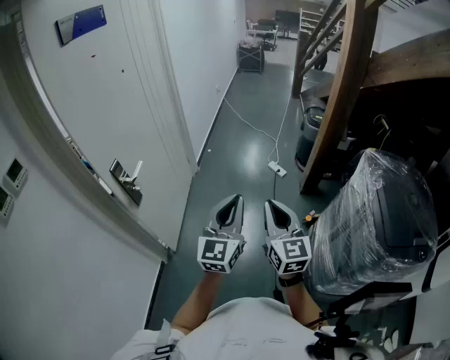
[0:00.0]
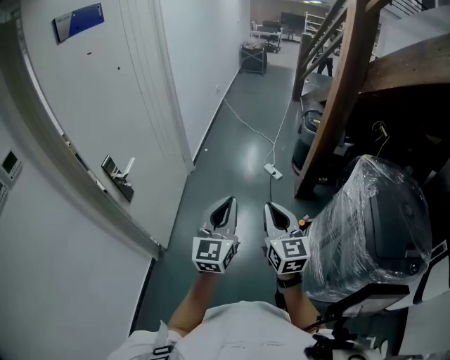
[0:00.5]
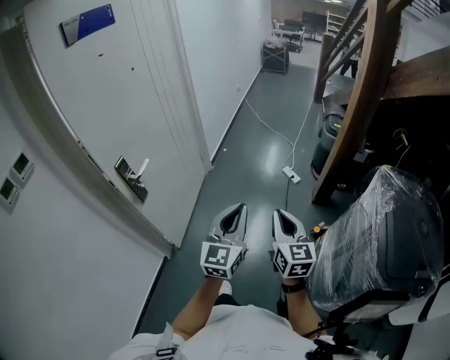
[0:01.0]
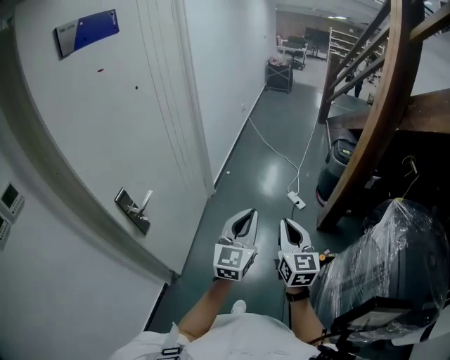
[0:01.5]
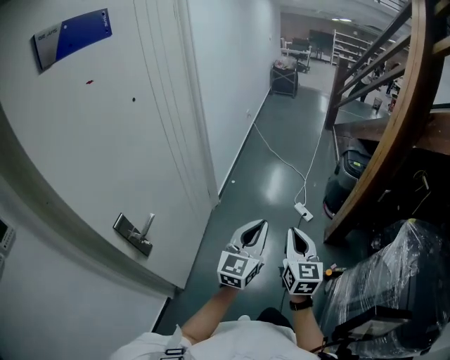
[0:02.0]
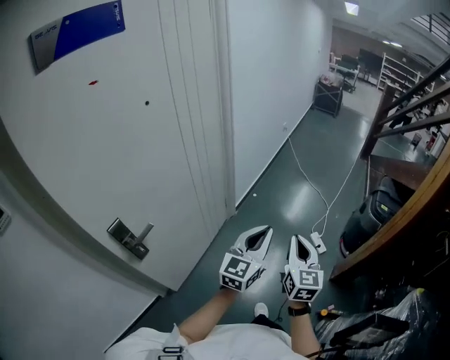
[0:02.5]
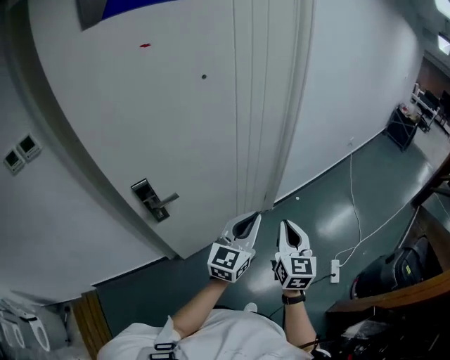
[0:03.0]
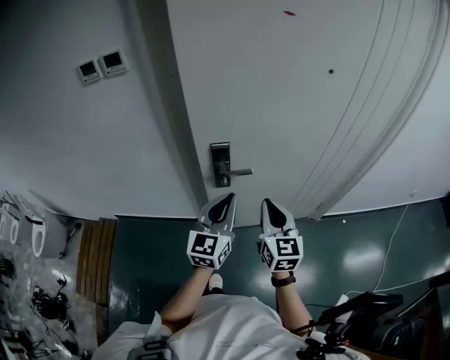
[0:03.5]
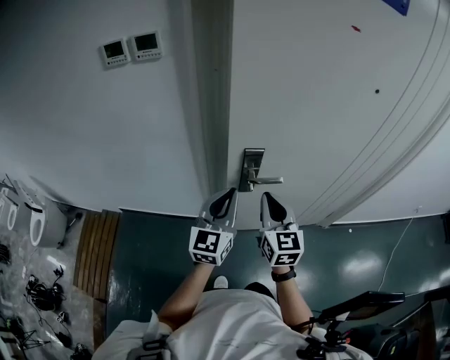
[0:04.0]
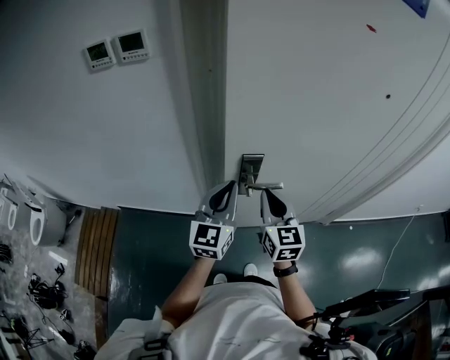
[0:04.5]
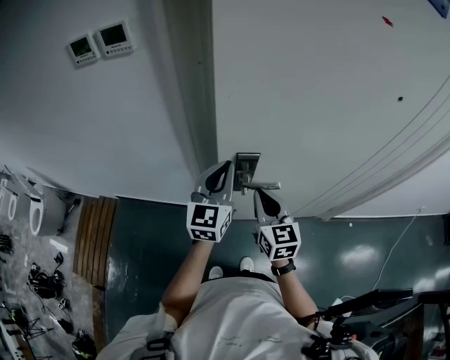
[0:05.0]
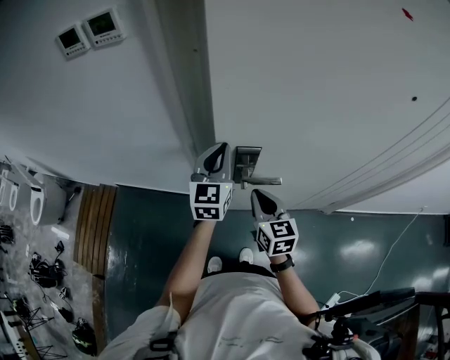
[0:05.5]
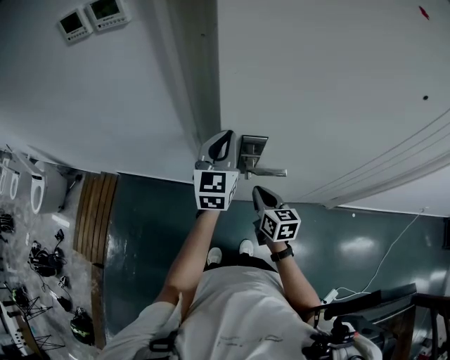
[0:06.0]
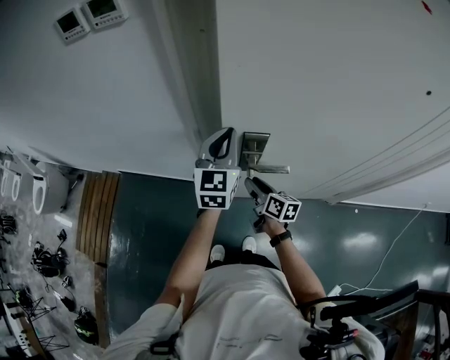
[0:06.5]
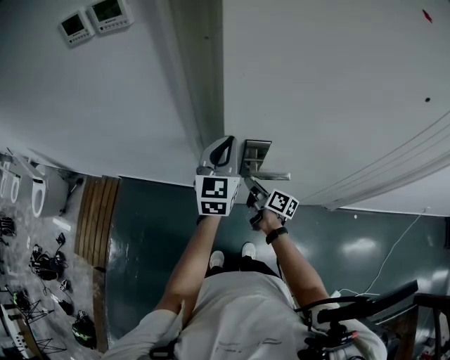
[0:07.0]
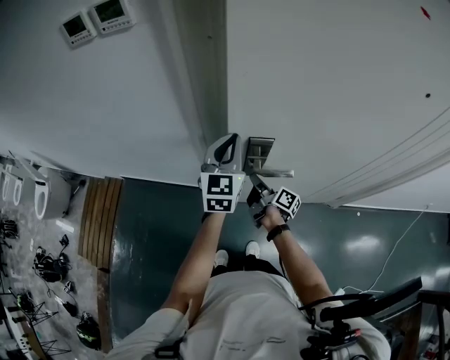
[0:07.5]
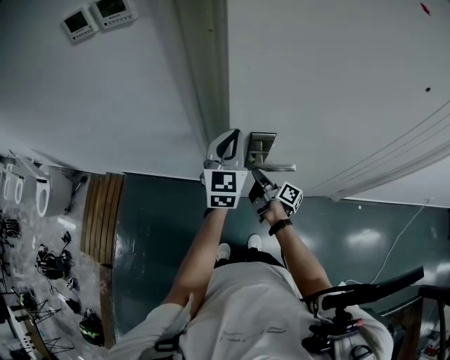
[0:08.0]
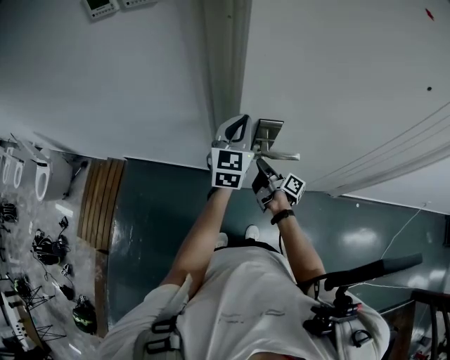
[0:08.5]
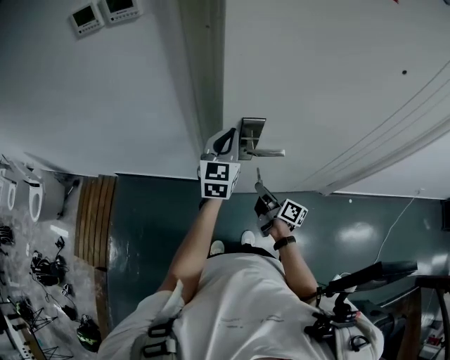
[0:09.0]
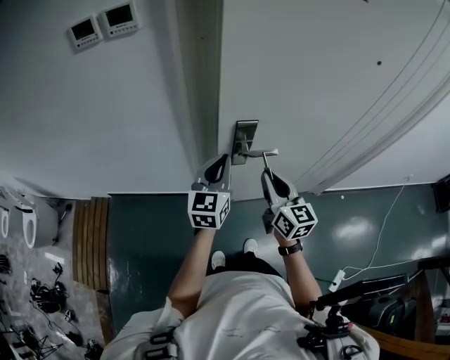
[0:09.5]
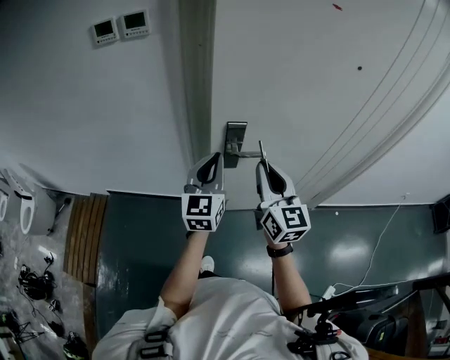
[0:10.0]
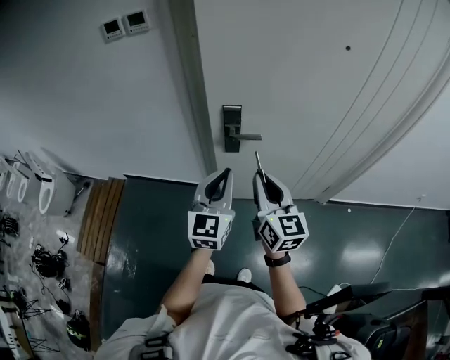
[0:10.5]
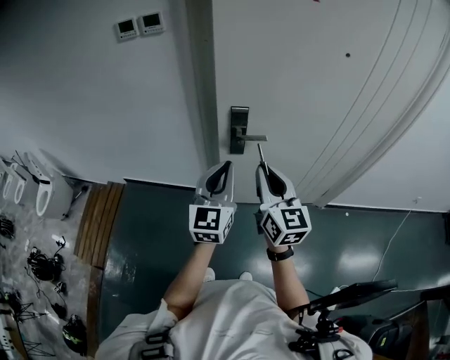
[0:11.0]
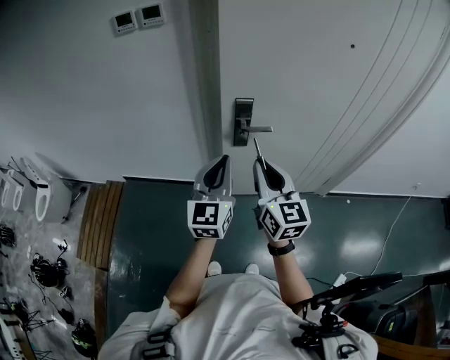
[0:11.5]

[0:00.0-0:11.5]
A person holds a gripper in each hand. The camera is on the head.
0:00.0 to 0:02.0: The grippers both shift forward by approximately 25 cm.
0:02.0 to 0:04.0: Both grippers are carried some 40 cm. The right gripper turns by about 80 degrees. The left gripper rotates some 80 degrees.
0:04.0 to 0:06.0: The left gripper is displaced forward by some 20 cm. The right gripper shifts approximately 20 cm downward and forward, and changes its angle by some 30 degrees.
0:06.0 to 0:07.5: The right gripper goes some 10 cm forward and downward, rotates around the line of its fingers by about 50 degrees, clockwise from behind, and opens, then closes once more.
0:07.5 to 0:09.5: The left gripper travels backward by some 10 cm. The right gripper moves upward and backward, some 25 cm, and rotates around the line of its fingers by approximately 70 degrees, counterclockwise from behind.
0:09.5 to 0:11.5: The grippers both shift backward and upward by about 20 cm.

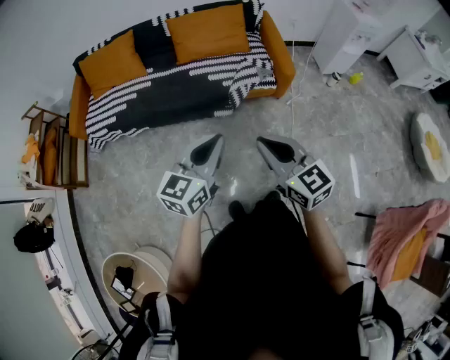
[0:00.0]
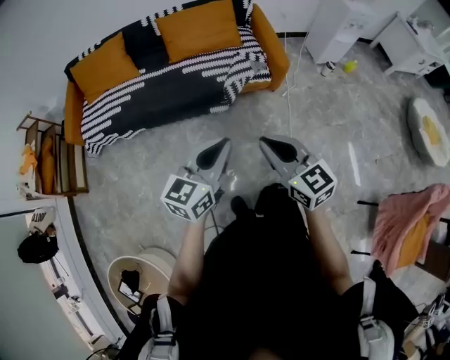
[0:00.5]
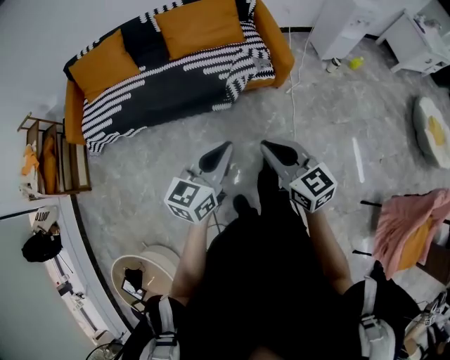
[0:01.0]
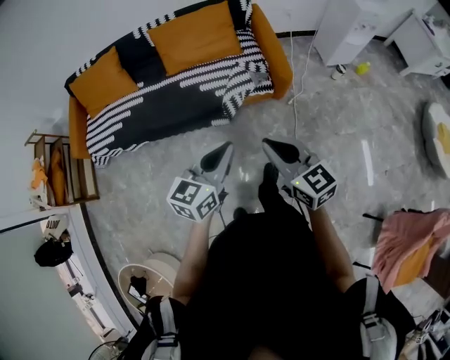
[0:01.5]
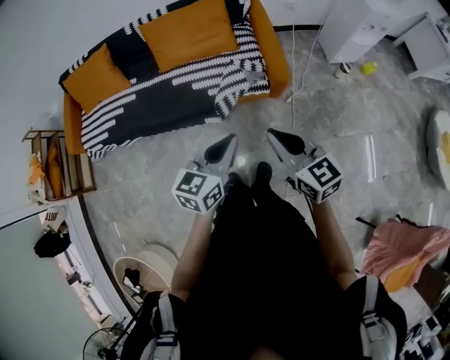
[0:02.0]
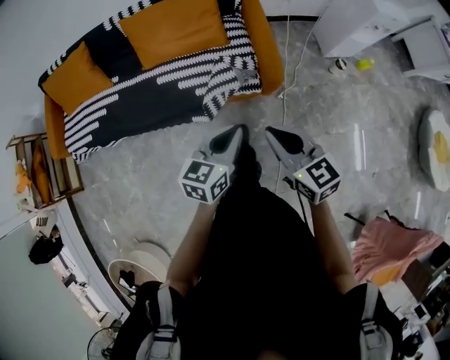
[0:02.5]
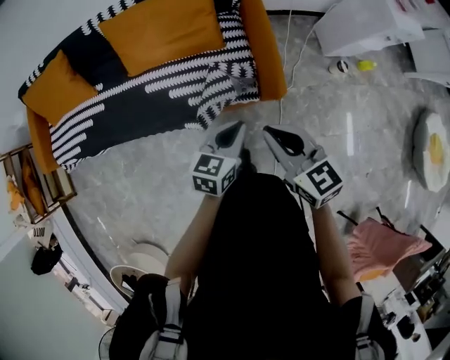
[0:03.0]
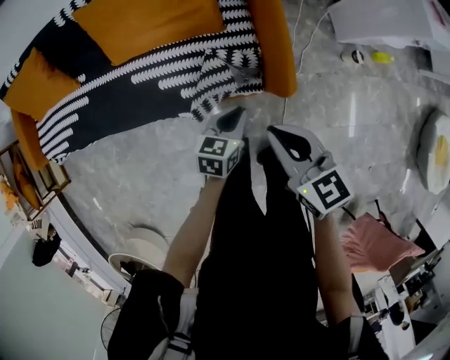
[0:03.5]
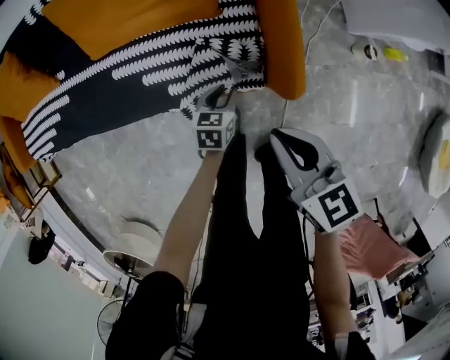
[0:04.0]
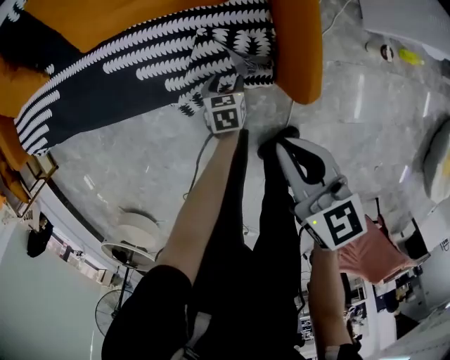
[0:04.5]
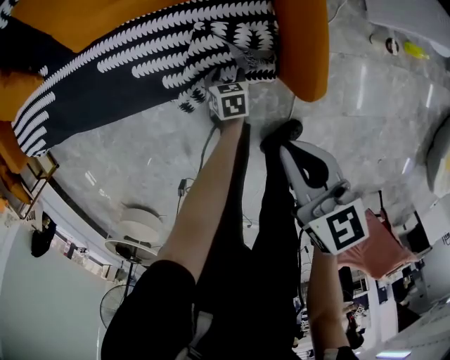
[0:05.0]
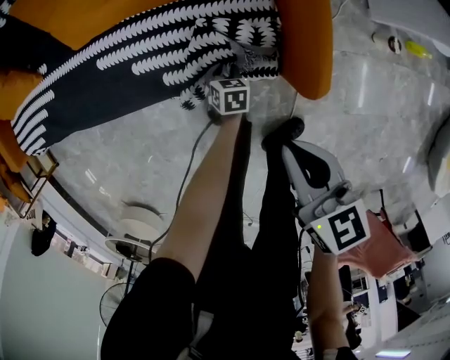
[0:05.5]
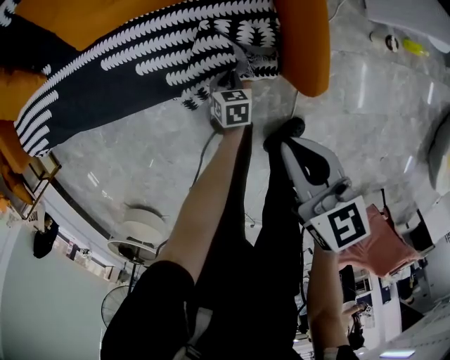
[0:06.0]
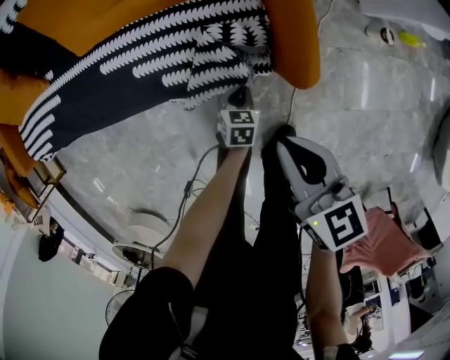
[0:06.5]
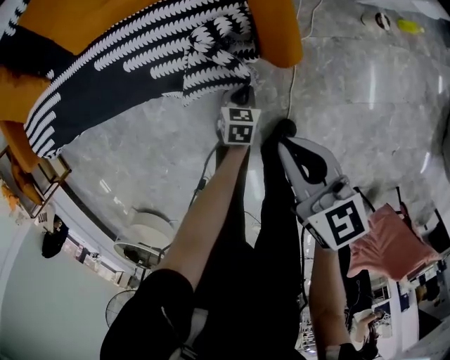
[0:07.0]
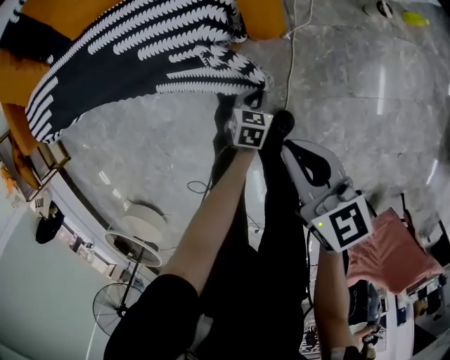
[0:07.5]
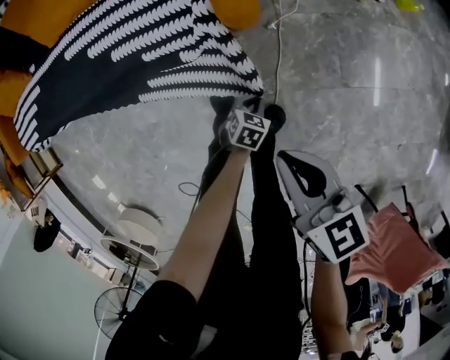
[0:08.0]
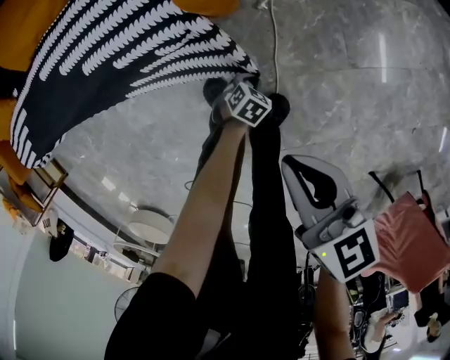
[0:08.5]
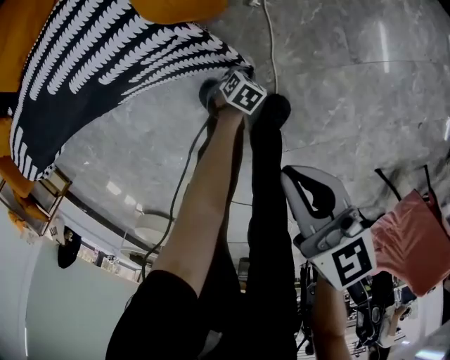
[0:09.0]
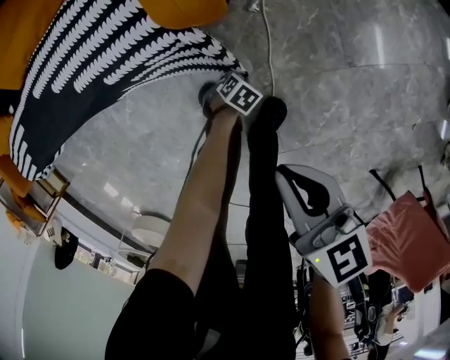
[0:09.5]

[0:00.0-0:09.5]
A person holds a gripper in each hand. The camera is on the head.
0:00.0 to 0:02.0: The grippers both shift forward and to the right by some 25 cm.
0:02.0 to 0:04.0: The left gripper is displaced downward and forward by about 50 cm, changes its angle by some 30 degrees, and opens its fingers. Meanwhile the right gripper travels forward and downward by about 35 cm, and rotates about 20 degrees.
0:04.0 to 0:05.5: The left gripper heads downward, covering roughly 15 cm, swivels some 20 degrees, and opens, then closes once more; the right gripper heads downward, covering roughly 5 cm.
0:05.5 to 0:07.5: The left gripper moves backward and to the right, approximately 20 cm, and closes, while the right gripper shifts roughly 15 cm backward.
0:07.5 to 0:09.5: The left gripper is displaced downward by some 20 cm, and swivels about 40 degrees. The right gripper goes some 10 cm downward.

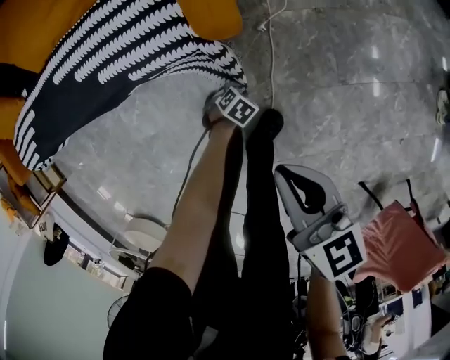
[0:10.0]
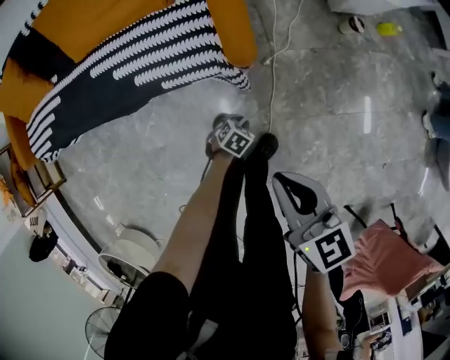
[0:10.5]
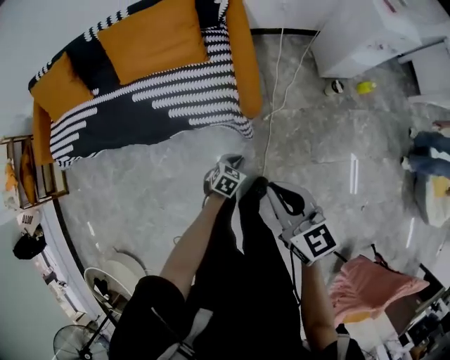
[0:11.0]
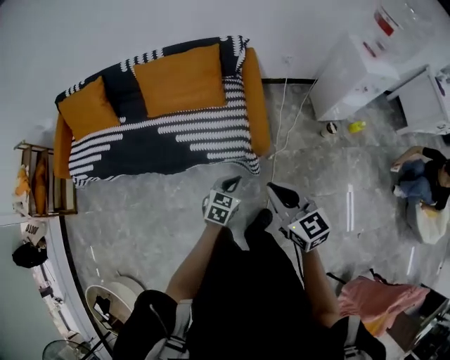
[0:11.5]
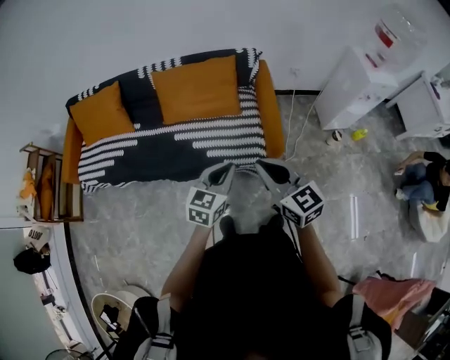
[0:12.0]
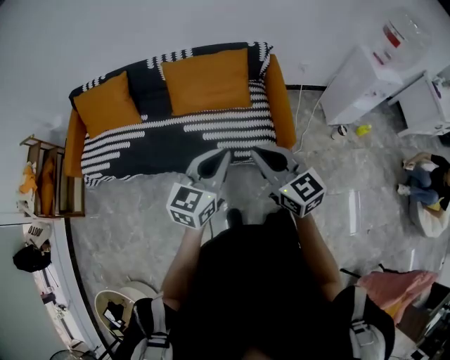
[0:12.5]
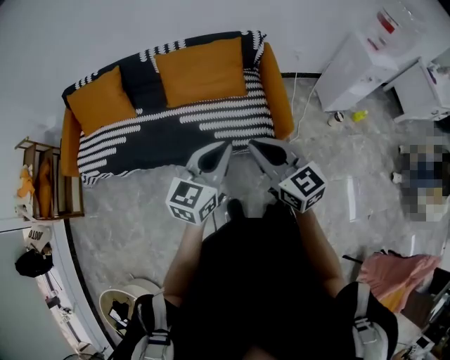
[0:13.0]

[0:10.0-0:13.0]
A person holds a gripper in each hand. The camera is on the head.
0:10.0 to 0:11.5: The left gripper moves upward, approximately 50 cm, and angles its fingers upward, by some 30 degrees, while the right gripper goes some 30 cm upward, and rotates about 30 degrees.
0:11.5 to 0:13.0: The left gripper travels upward and to the left by approximately 35 cm, and changes its angle by roughly 30 degrees. The right gripper shifts about 20 cm to the left.

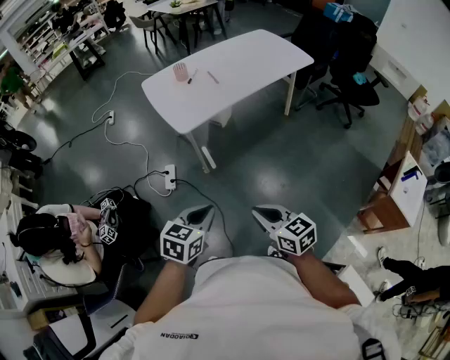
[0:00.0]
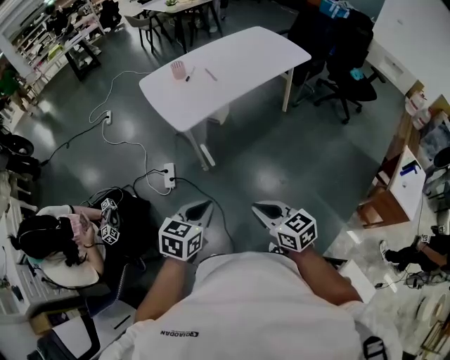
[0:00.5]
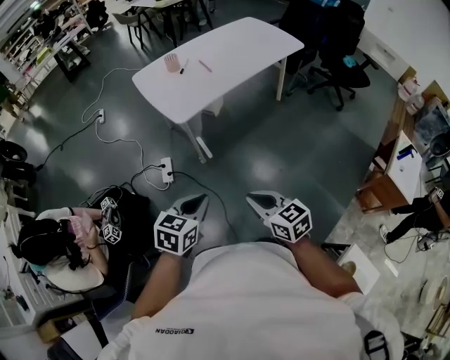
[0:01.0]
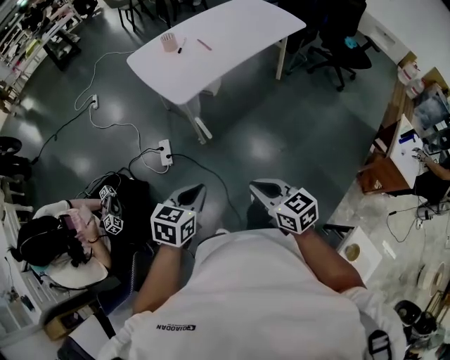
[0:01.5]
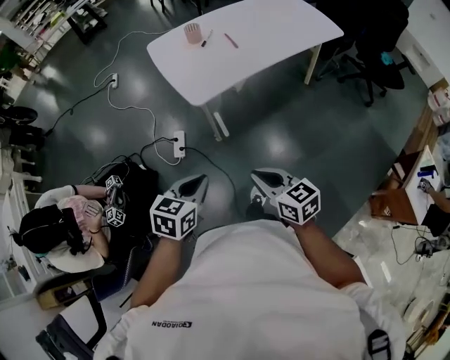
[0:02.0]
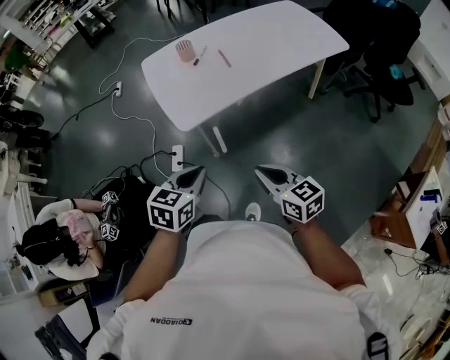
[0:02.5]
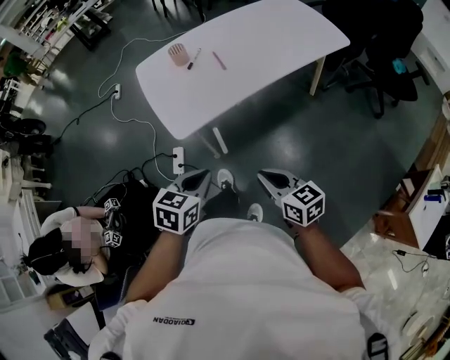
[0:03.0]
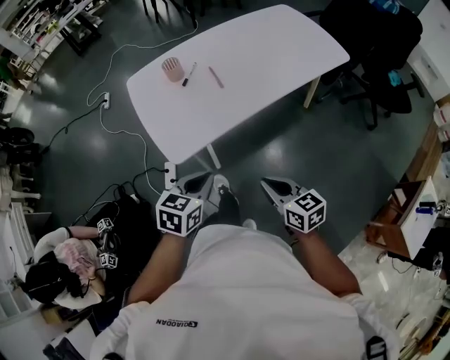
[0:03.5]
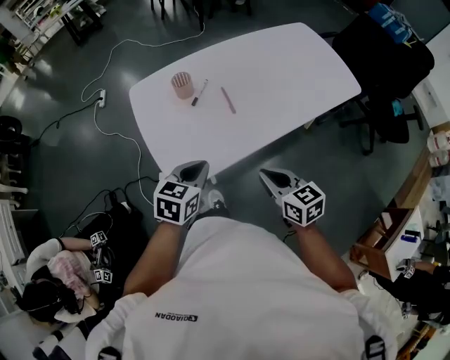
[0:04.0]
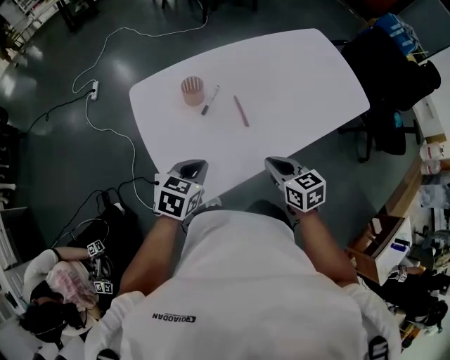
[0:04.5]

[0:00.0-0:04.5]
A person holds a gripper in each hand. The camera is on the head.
0:00.0 to 0:02.0: The two grippers go approximately 15 cm forward and to the left.
0:02.0 to 0:04.5: Both grippers are carried forward, approximately 50 cm.
